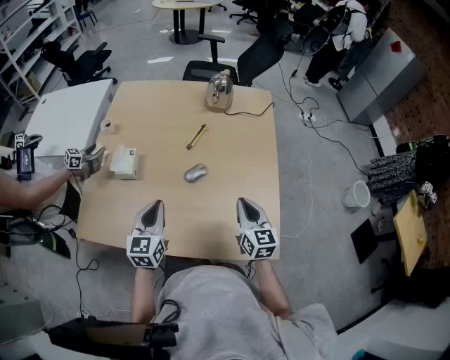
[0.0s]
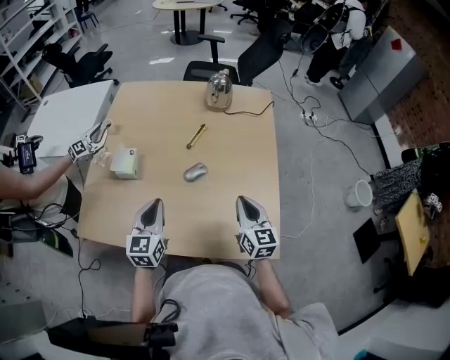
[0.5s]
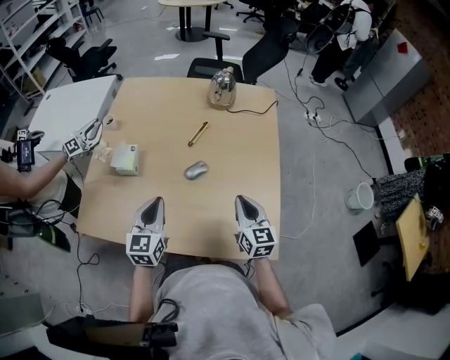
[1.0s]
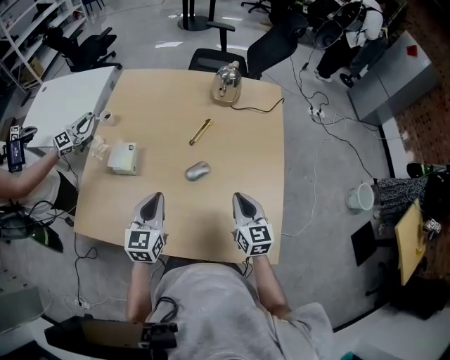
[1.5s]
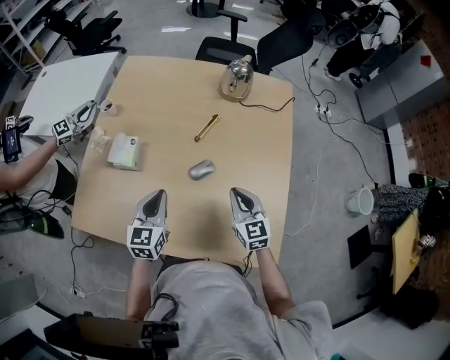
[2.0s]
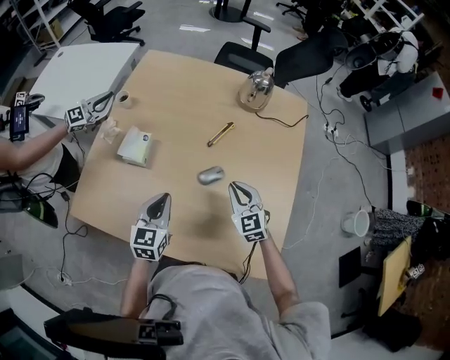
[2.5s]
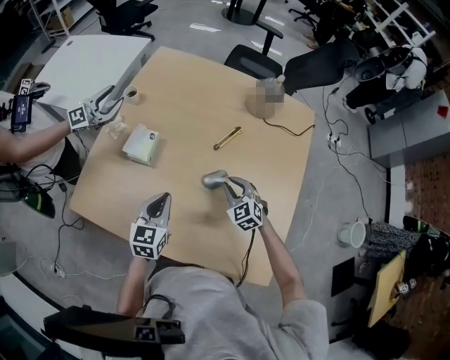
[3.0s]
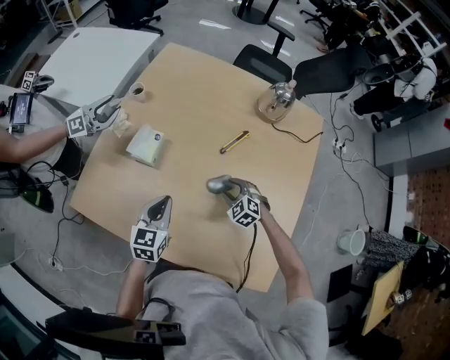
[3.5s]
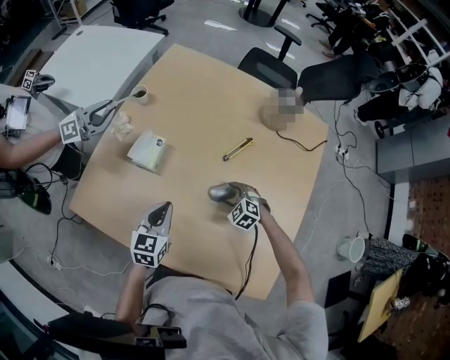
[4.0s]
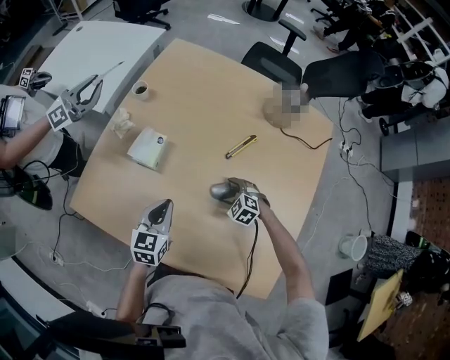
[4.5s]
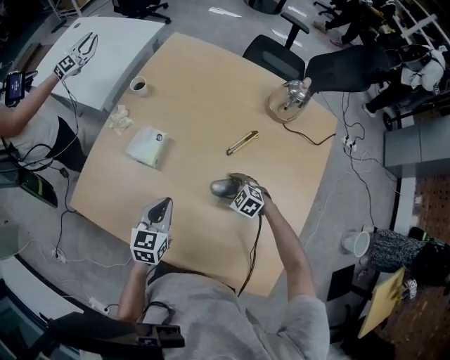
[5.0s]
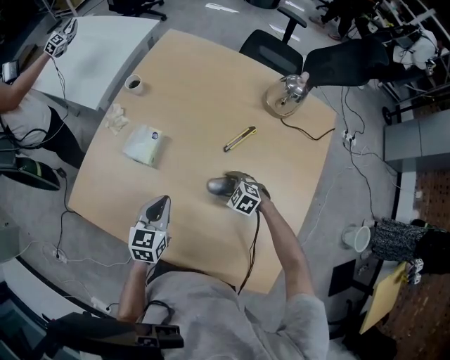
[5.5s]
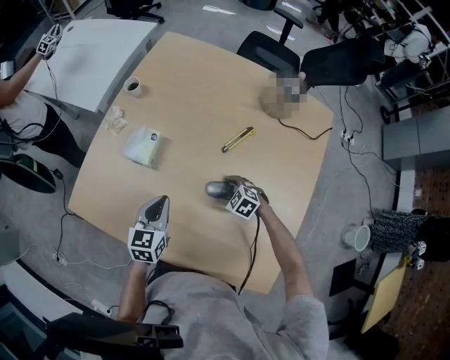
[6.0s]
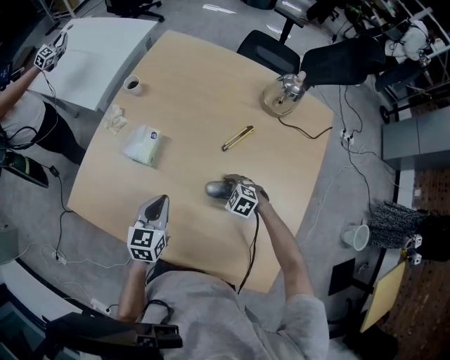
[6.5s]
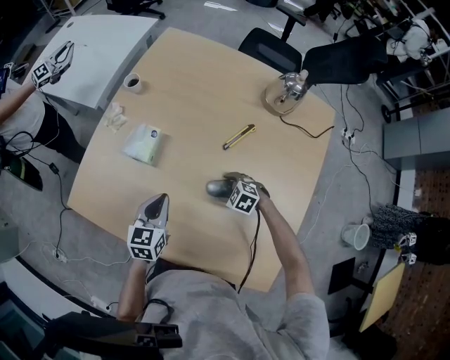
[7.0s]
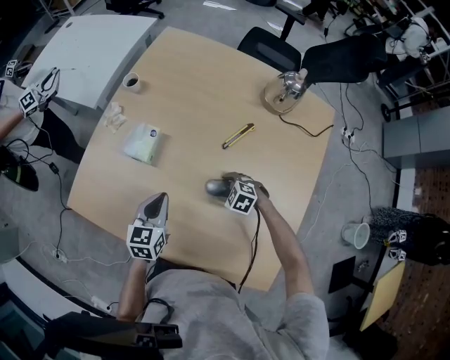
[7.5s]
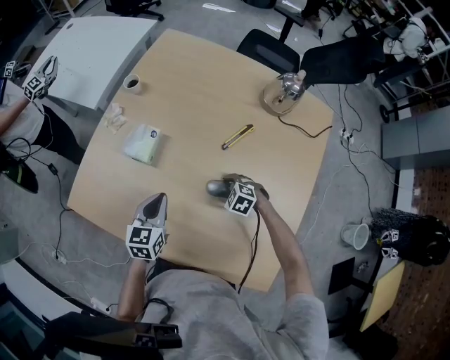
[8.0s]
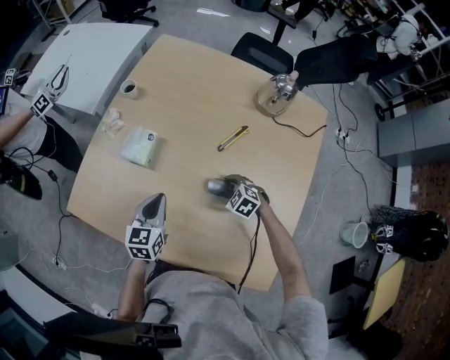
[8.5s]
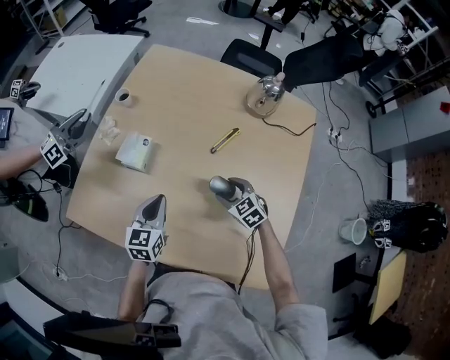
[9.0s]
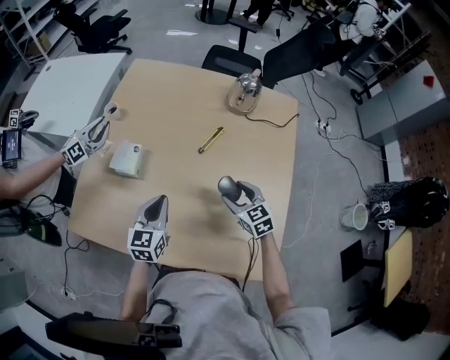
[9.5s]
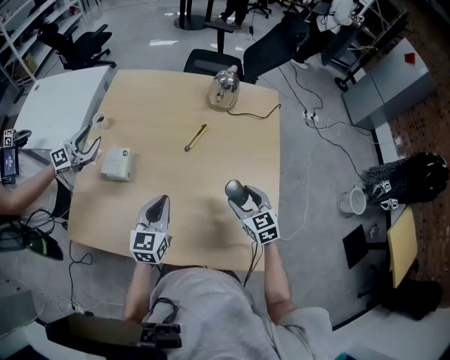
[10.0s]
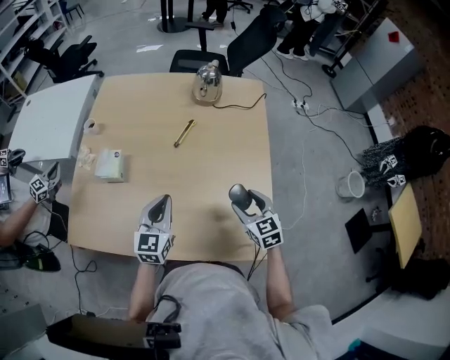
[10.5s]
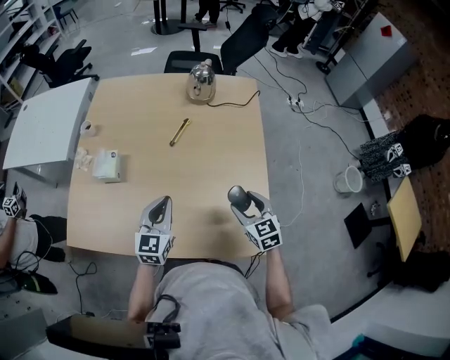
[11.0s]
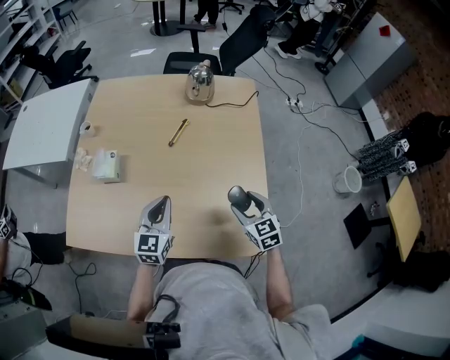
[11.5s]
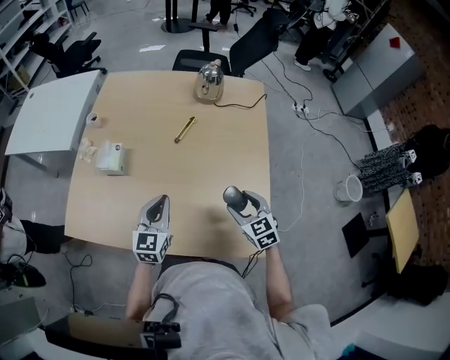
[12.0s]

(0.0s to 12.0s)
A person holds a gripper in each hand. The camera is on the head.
0.0s - 2.0s: The two grippers go approximately 5 cm forward.
2.0s - 4.0s: The left gripper shifts approximately 10 cm downward and to the left. Meanwhile the right gripper travels downward and forward by about 20 cm, points its fingers about 40 degrees further downward, and opens its fingers.
4.0s - 8.0s: There are only small adjustments of the grippers.
8.0s - 10.0s: The right gripper shifts roughly 20 cm upward, and tilts its fingers about 40 degrees upward, while the left gripper ends up approximately 15 cm from where it was, and turns by some 20 degrees.
10.0s - 12.0s: The left gripper is displaced backward by some 5 cm; the right gripper moves backward, some 10 cm.

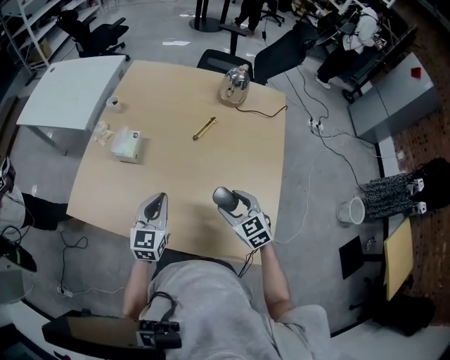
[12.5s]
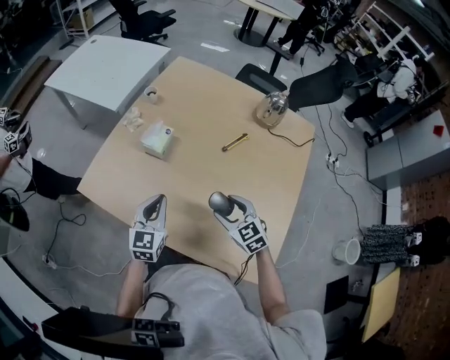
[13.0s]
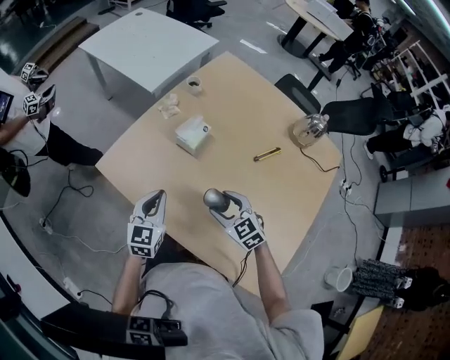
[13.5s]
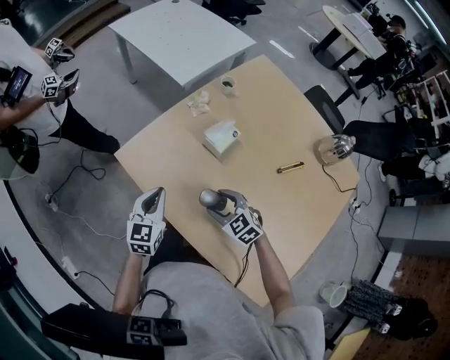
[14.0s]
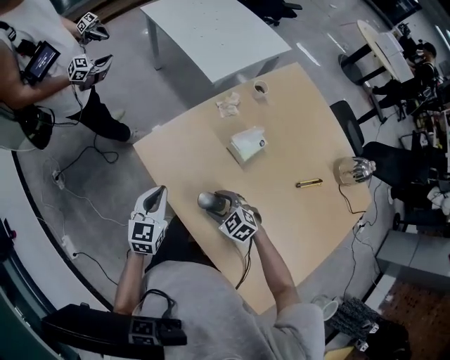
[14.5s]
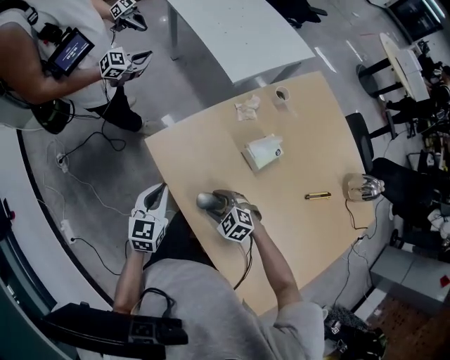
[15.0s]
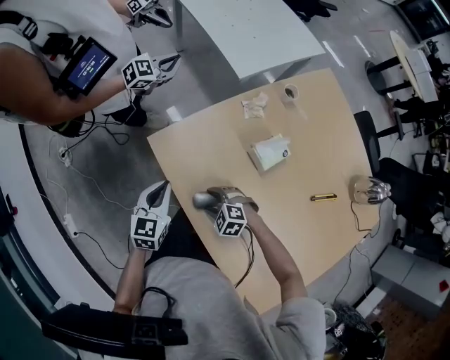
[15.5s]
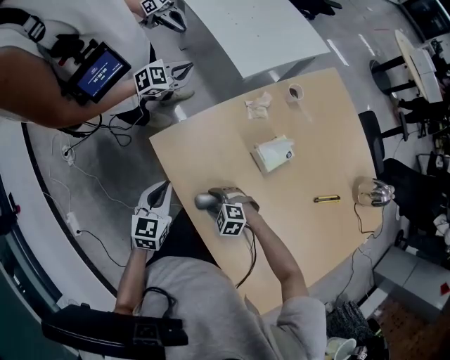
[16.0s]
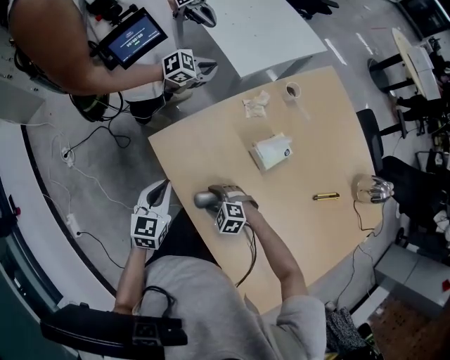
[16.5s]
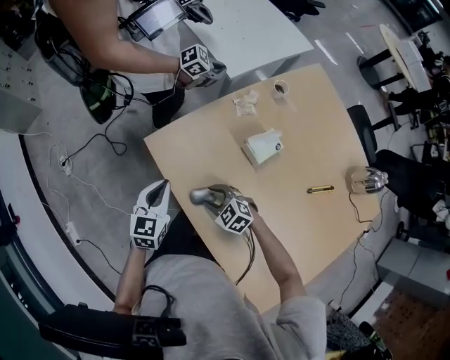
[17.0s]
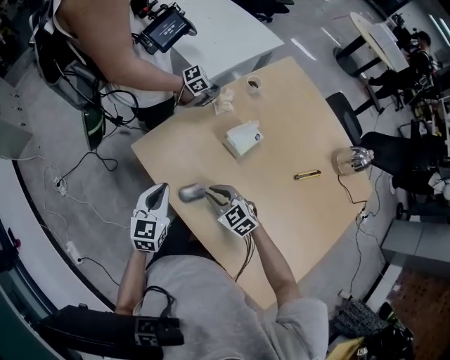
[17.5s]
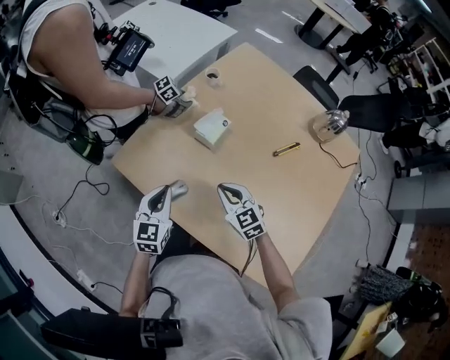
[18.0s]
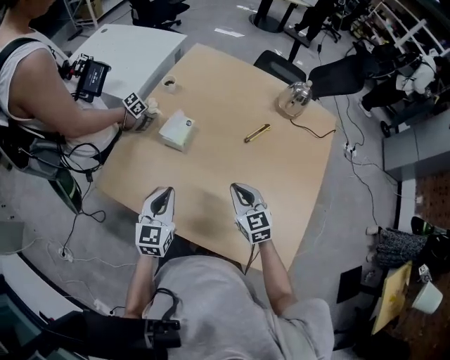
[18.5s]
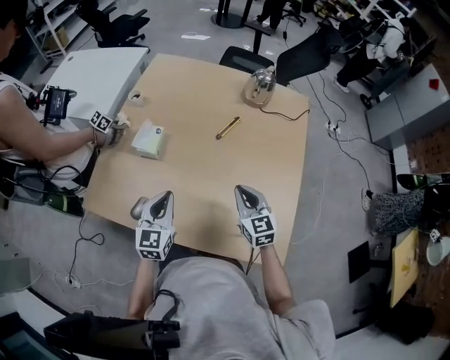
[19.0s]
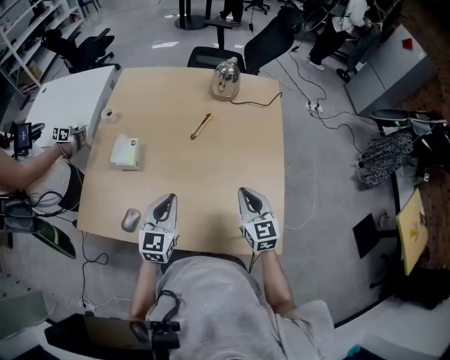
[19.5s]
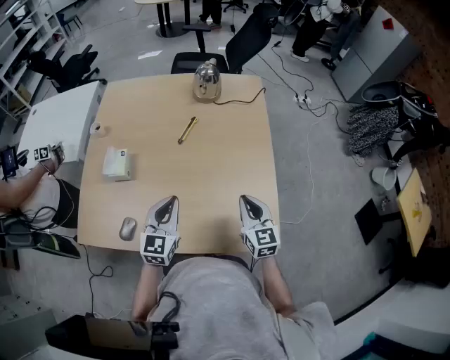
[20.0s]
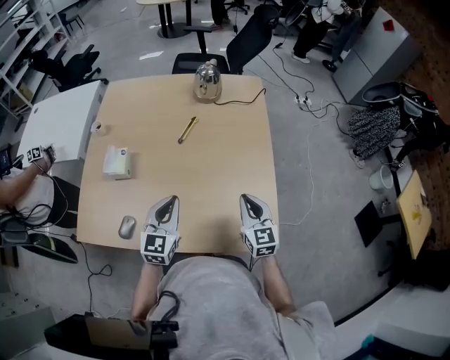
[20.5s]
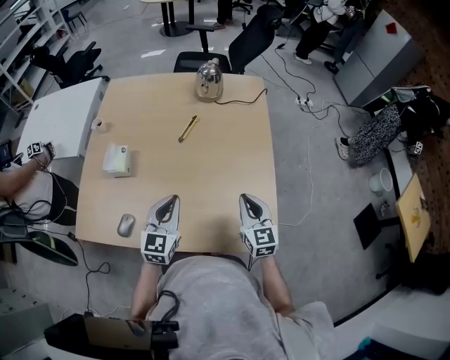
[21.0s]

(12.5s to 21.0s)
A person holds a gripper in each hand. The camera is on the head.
12.5s - 14.5s: The left gripper shifts by approximately 35 cm, and turns by approximately 40 degrees. Meanwhile the right gripper changes place by roughly 40 cm, and swivels some 60 degrees.
14.5s - 16.5s: The right gripper moves downward and to the left, approximately 10 cm, and turns by approximately 30 degrees. The left gripper moves about 5 cm.
16.5s - 19.0s: The left gripper moves some 35 cm, and changes its angle by roughly 40 degrees; the right gripper moves roughly 40 cm, tips its fingers upward by roughly 40 degrees, and closes its fingers.
19.0s - 21.0s: The right gripper shifts approximately 15 cm to the right and backward, and changes its angle by approximately 20 degrees, while the left gripper shifts about 15 cm to the right.

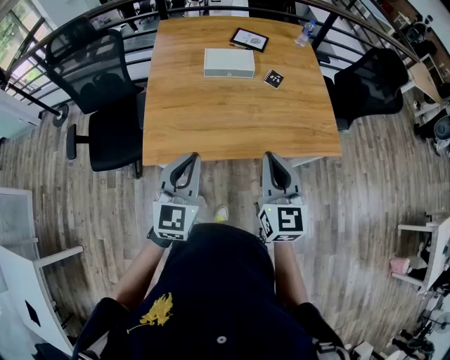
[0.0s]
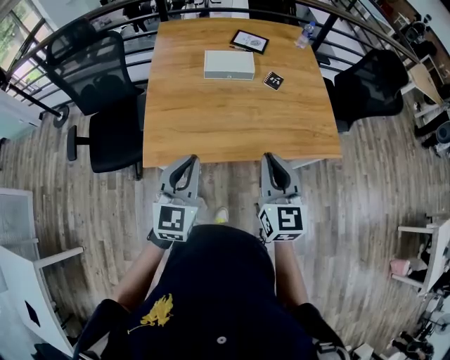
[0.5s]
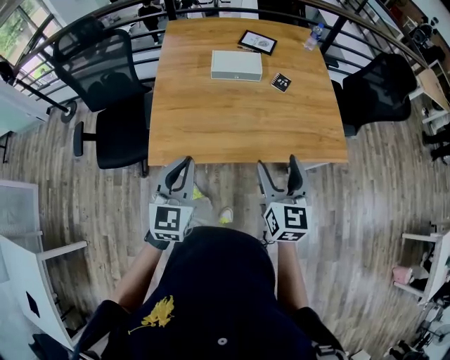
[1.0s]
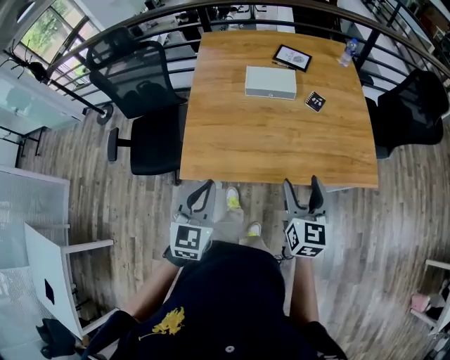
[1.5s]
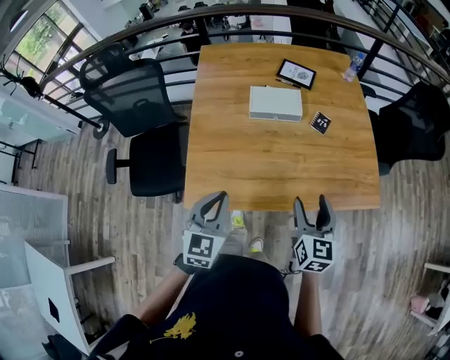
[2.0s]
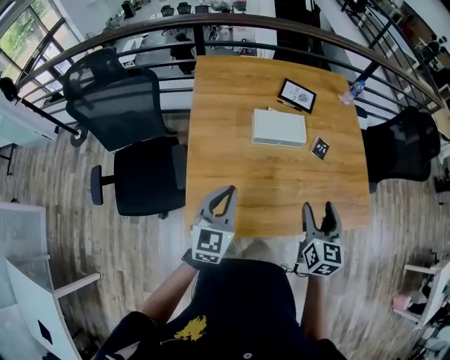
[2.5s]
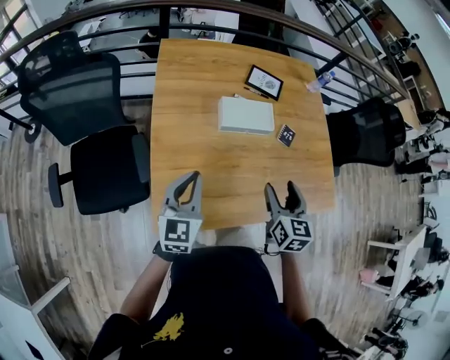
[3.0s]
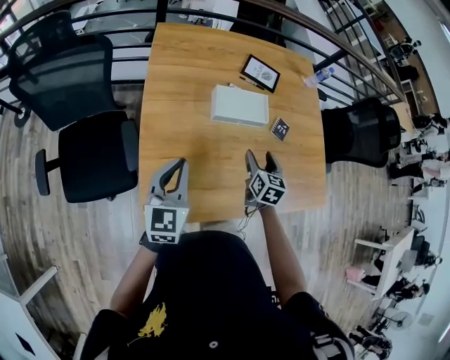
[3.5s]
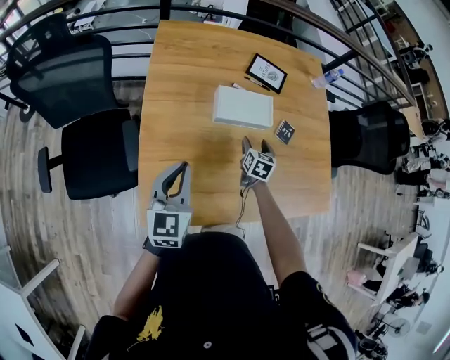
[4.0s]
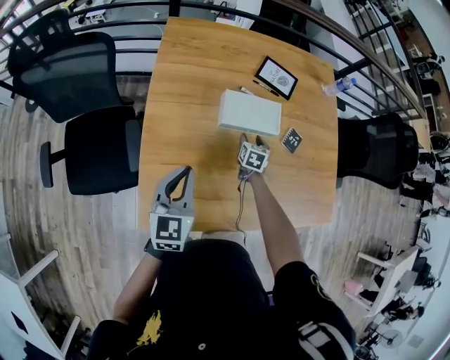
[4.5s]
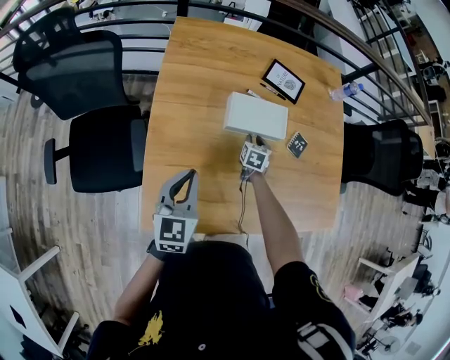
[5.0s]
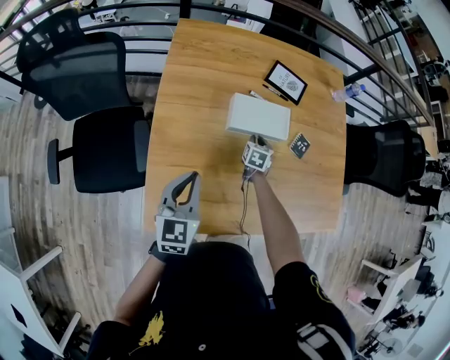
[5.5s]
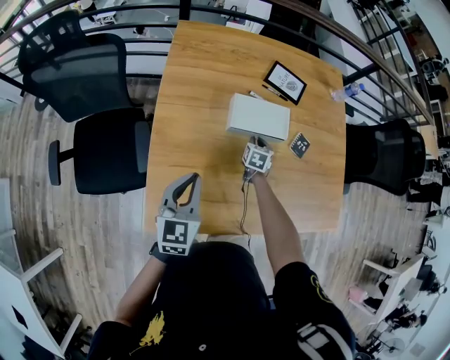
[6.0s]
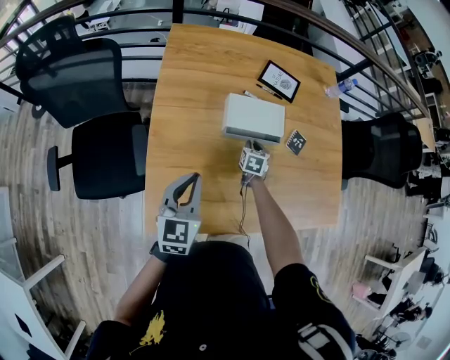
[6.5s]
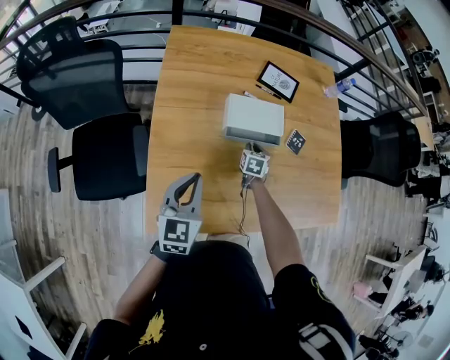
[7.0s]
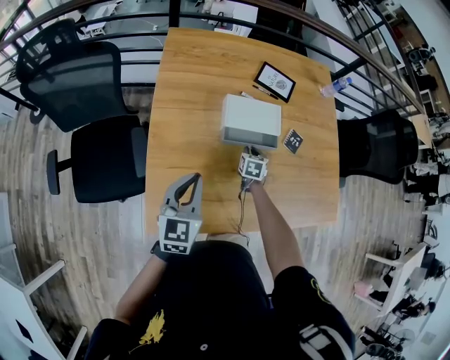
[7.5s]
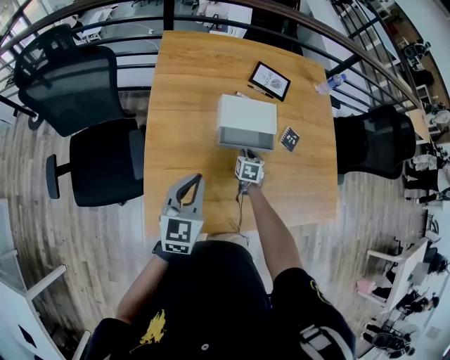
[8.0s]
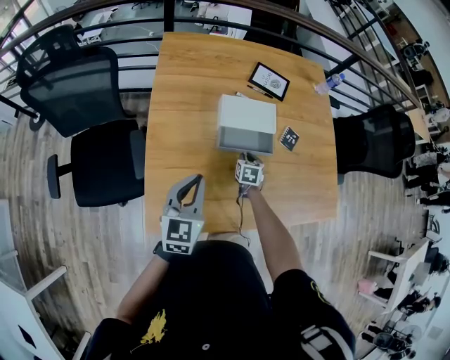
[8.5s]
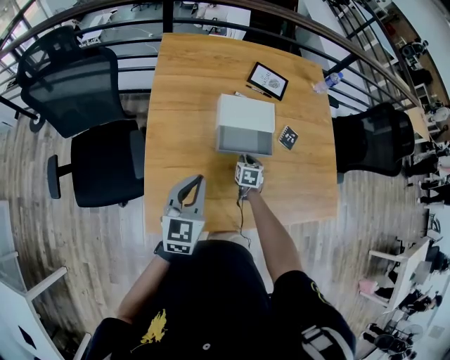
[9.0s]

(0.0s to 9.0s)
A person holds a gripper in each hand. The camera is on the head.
0.0s - 2.0s: The left gripper heads forward and to the left, covering some 15 cm; the right gripper is displaced forward and downward by some 15 cm, and opens up.
2.0s - 4.5s: The right gripper shifts some 50 cm forward and downward, and rotates some 30 degrees. Meanwhile the left gripper shifts some 25 cm forward and to the left.
4.5s - 7.0s: The right gripper closes its fingers.
7.0s - 9.0s: The right gripper moves backward, about 5 cm.
